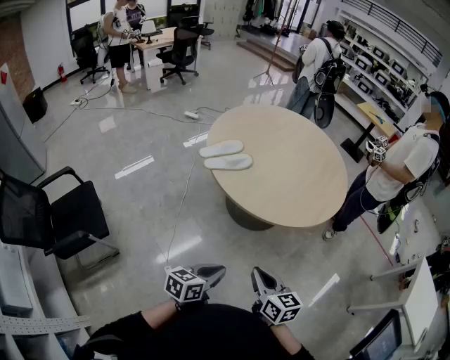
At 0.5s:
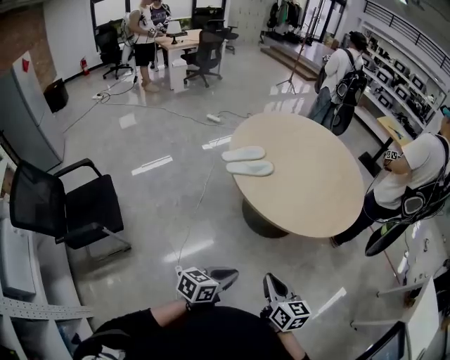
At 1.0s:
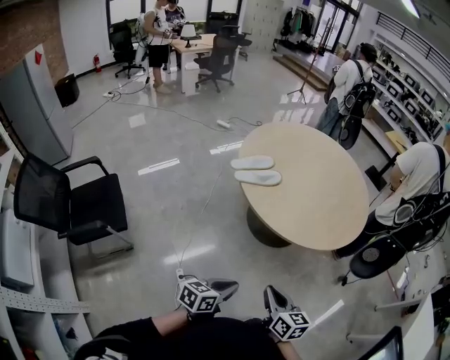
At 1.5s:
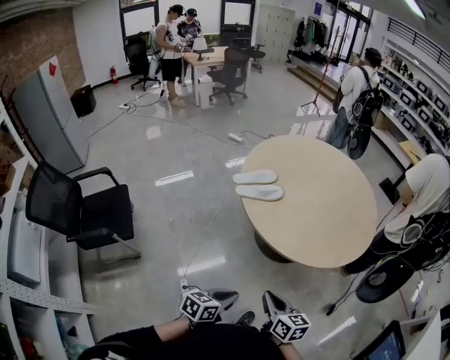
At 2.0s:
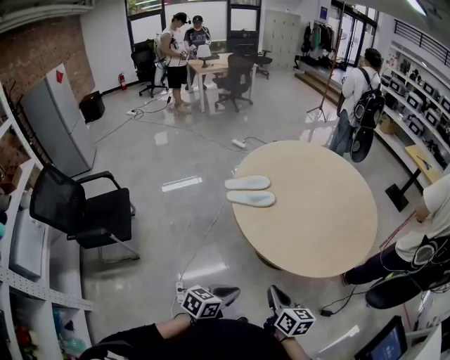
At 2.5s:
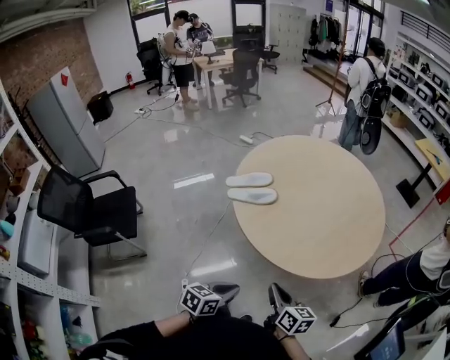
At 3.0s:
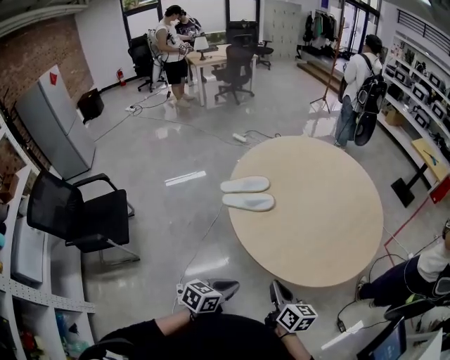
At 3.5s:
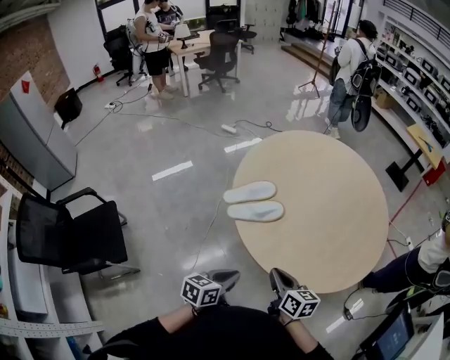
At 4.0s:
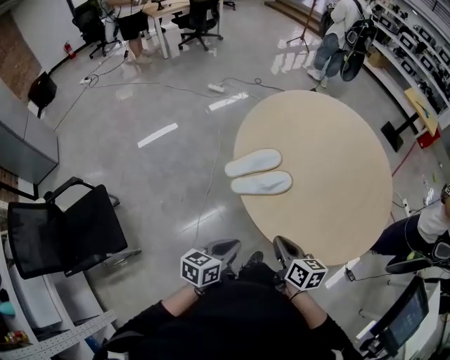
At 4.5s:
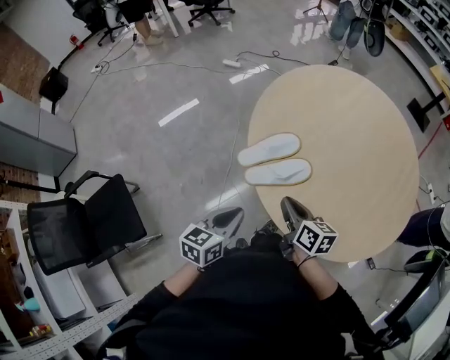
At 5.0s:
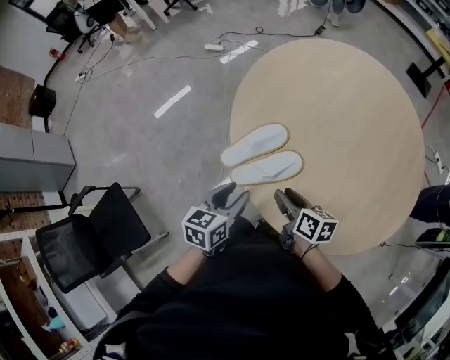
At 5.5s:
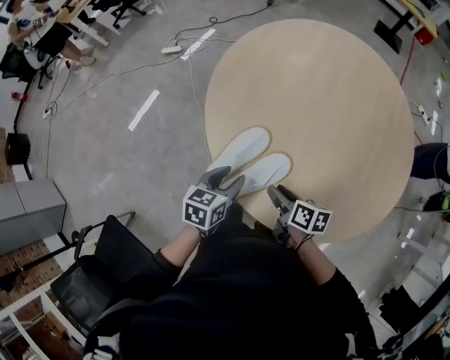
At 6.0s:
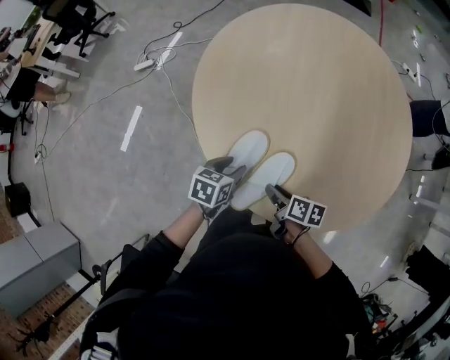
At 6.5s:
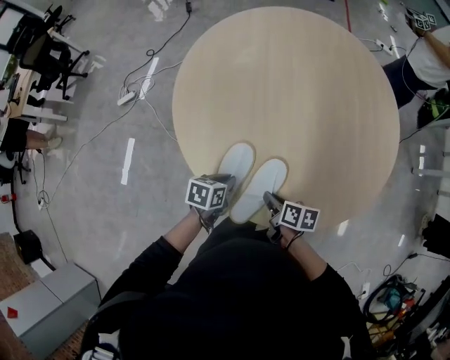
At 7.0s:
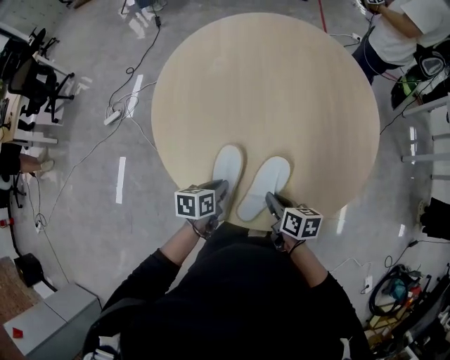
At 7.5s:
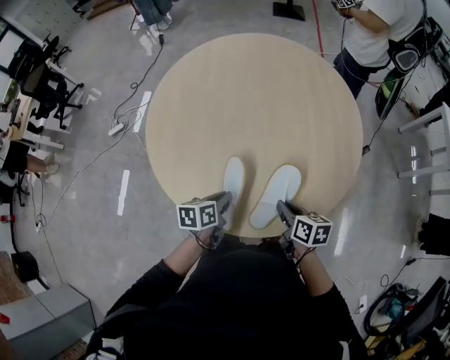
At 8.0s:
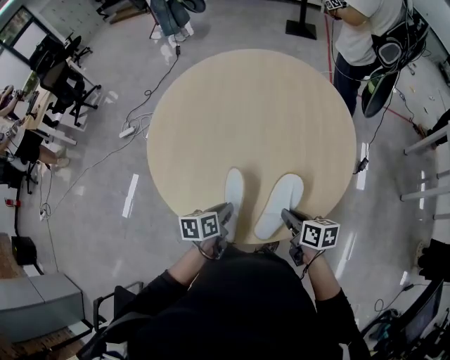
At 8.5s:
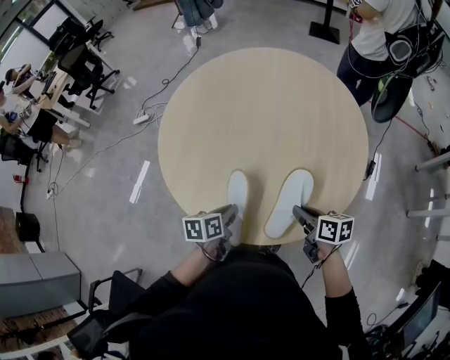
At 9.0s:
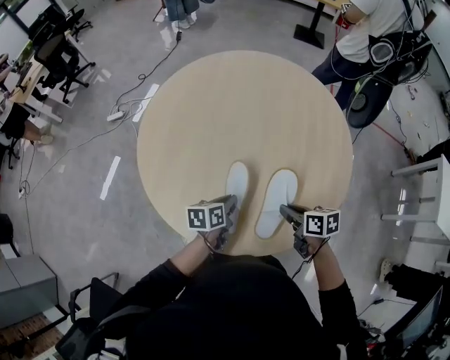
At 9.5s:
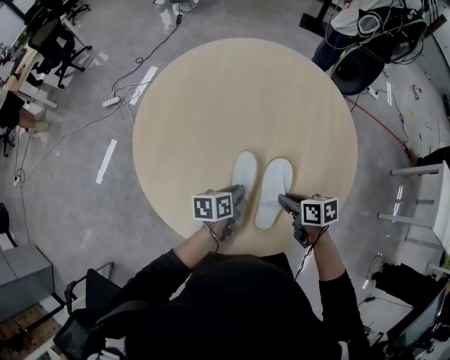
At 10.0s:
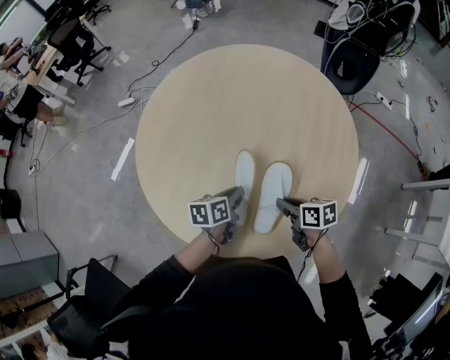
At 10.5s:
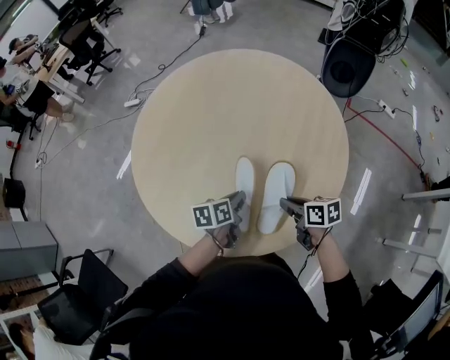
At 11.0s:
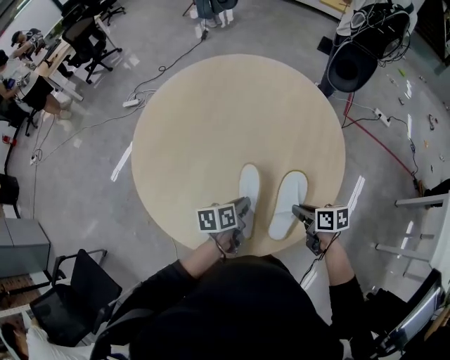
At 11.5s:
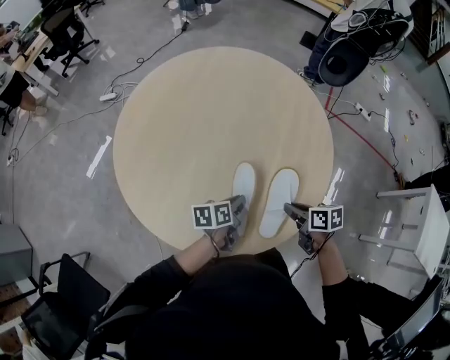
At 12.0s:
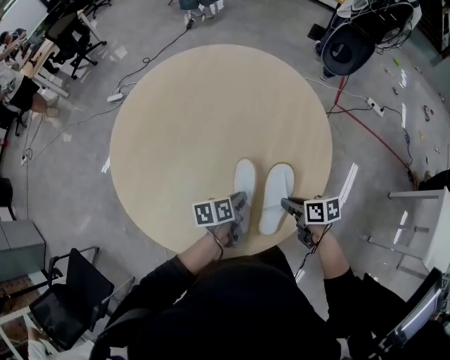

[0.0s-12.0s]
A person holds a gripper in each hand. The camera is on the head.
0.0s to 2.0s: The right gripper heads forward and to the right, covering roughly 15 cm; the left gripper moves to the right and forward, some 15 cm.
2.0s to 4.0s: The two grippers go roughly 35 cm forward and to the left.
4.0s to 6.0s: The right gripper moves approximately 30 cm, rotates around the line of its fingers by approximately 40 degrees, clockwise from behind, and opens; the left gripper ends up roughly 40 cm from where it was, rotates about 50 degrees, and opens up.
6.0s to 8.0s: The two grippers go roughly 30 cm to the right. The right gripper closes its fingers. The left gripper closes.
8.0s to 10.0s: The left gripper moves forward and to the right, about 15 cm; the right gripper heads forward, covering roughly 15 cm, and turns by roughly 20 degrees.
10.0s to 12.0s: The two grippers go roughly 15 cm to the right.

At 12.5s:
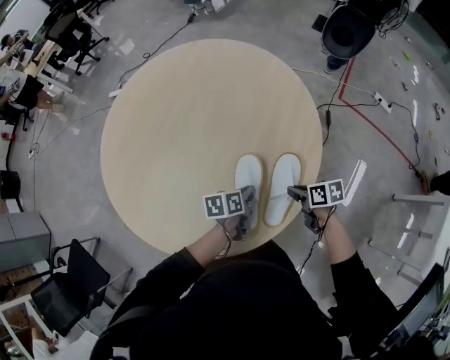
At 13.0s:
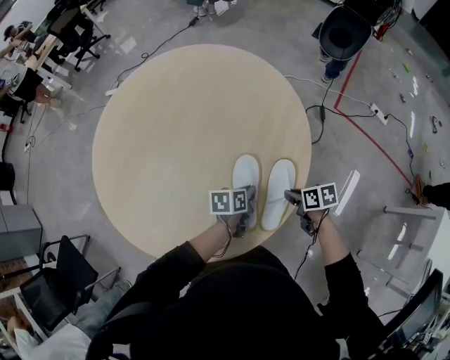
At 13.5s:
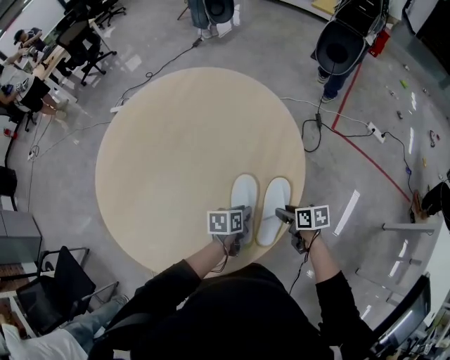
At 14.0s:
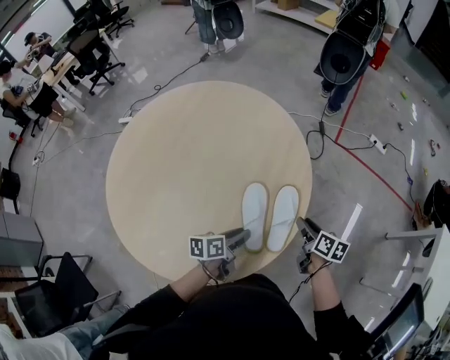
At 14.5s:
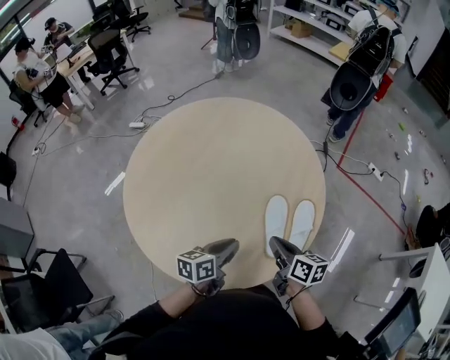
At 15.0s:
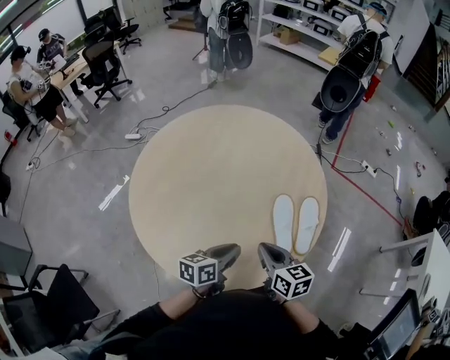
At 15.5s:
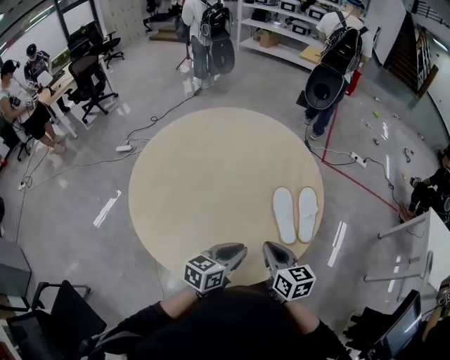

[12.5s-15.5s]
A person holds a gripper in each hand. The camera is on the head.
12.5s to 14.0s: The right gripper goes approximately 10 cm to the right and upward, changes its angle by approximately 30 degrees, and opens. The left gripper heads upward, covering about 5 cm, and opens.
14.0s to 15.5s: Both grippers travel together to the left, backward and upward, roughly 35 cm. The left gripper turns by about 40 degrees, and closes its fingers, while the right gripper changes its angle by some 30 degrees, and closes its fingers.

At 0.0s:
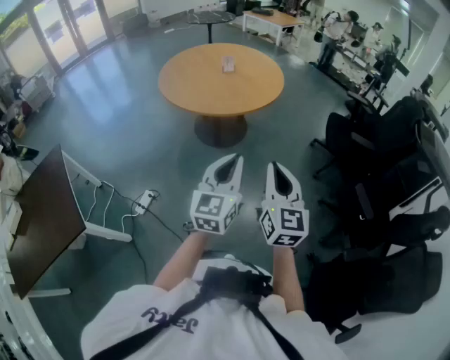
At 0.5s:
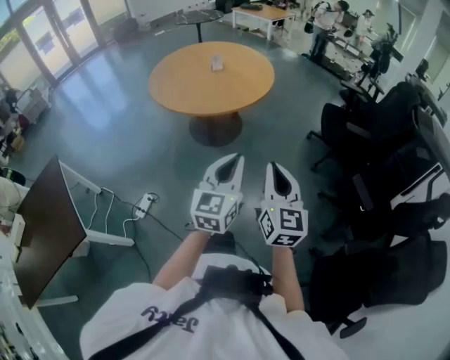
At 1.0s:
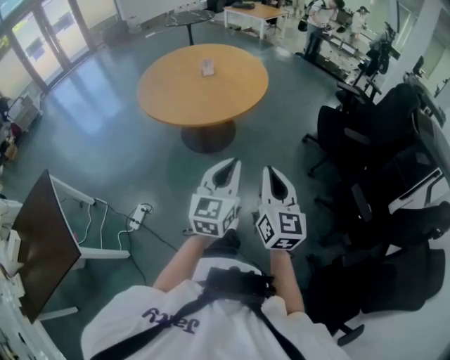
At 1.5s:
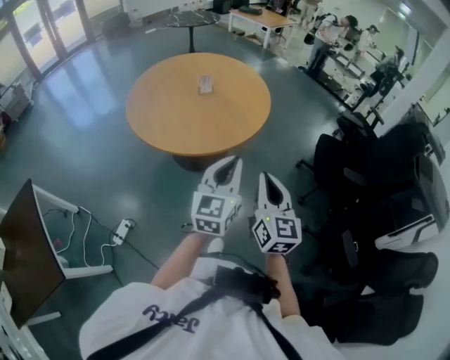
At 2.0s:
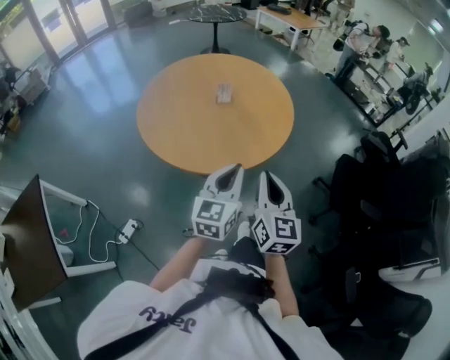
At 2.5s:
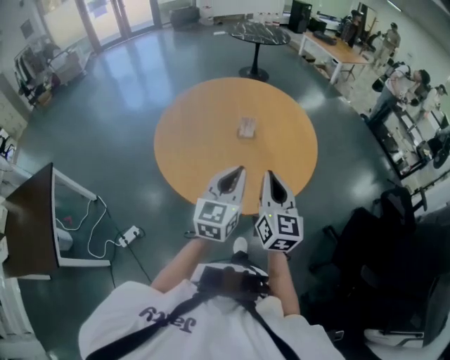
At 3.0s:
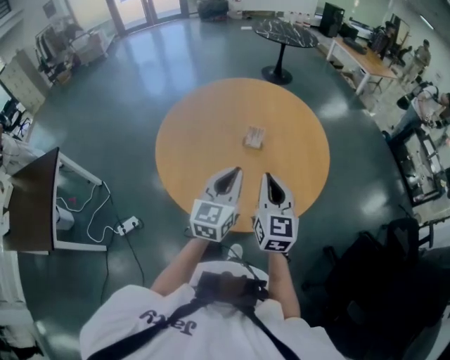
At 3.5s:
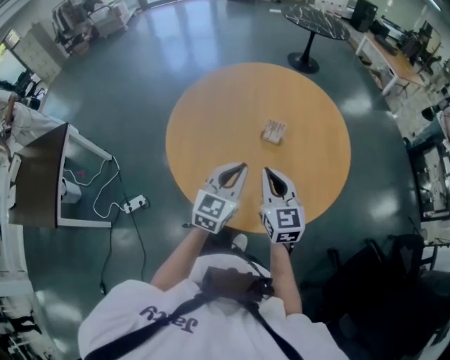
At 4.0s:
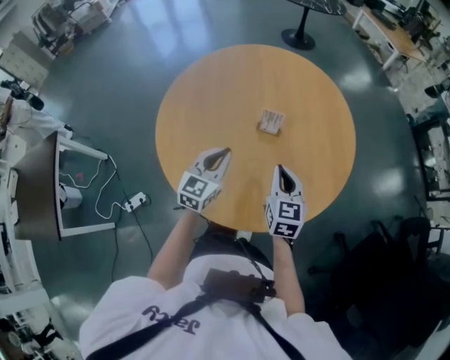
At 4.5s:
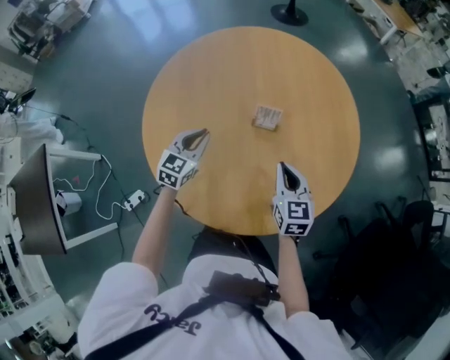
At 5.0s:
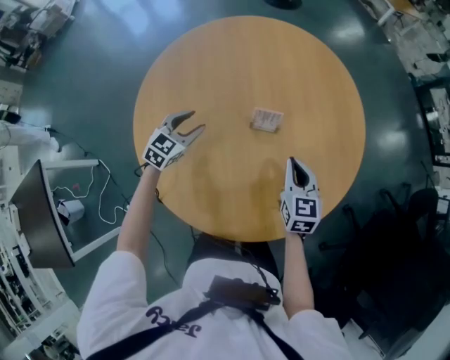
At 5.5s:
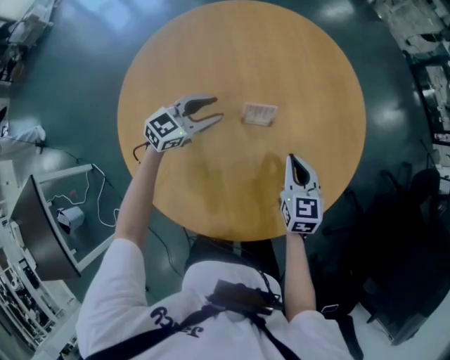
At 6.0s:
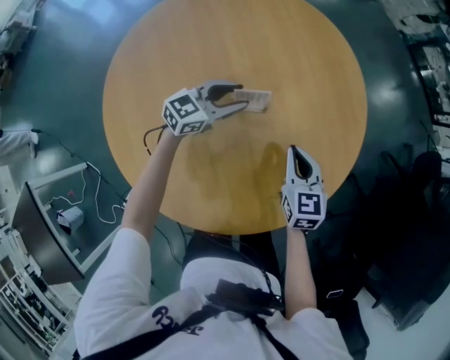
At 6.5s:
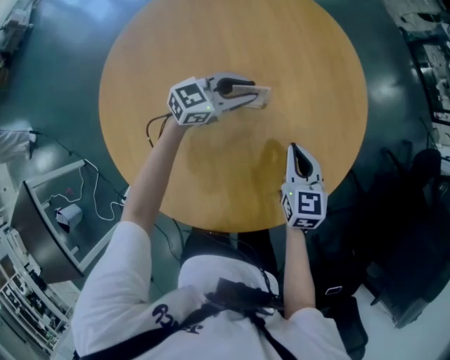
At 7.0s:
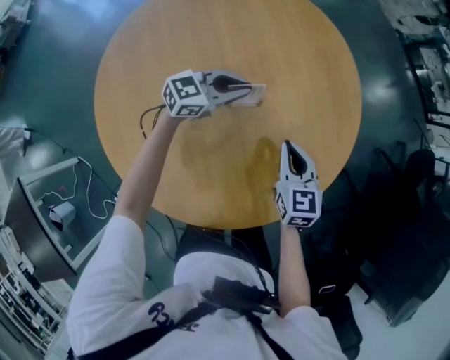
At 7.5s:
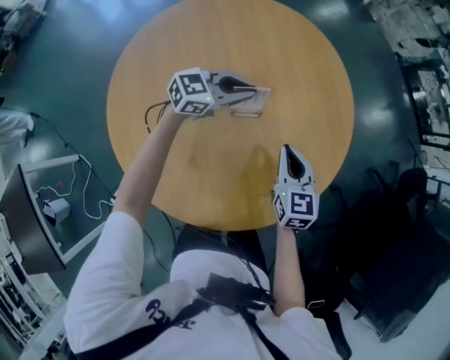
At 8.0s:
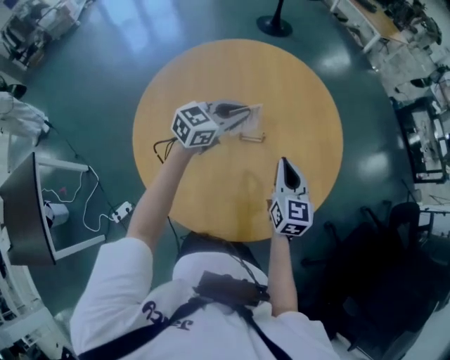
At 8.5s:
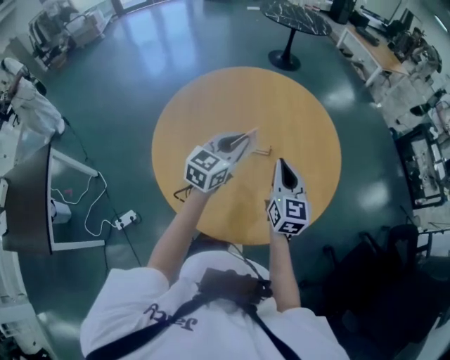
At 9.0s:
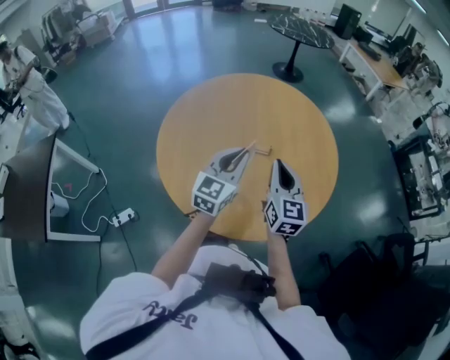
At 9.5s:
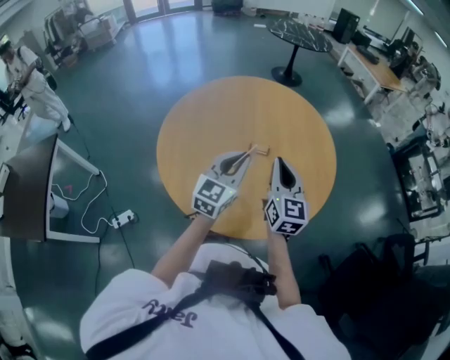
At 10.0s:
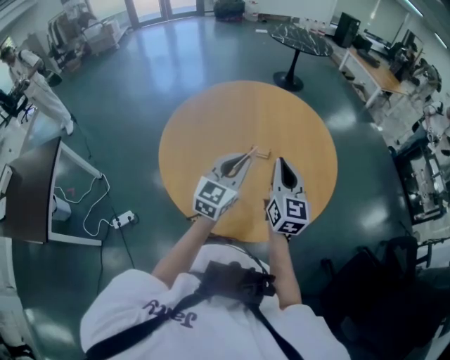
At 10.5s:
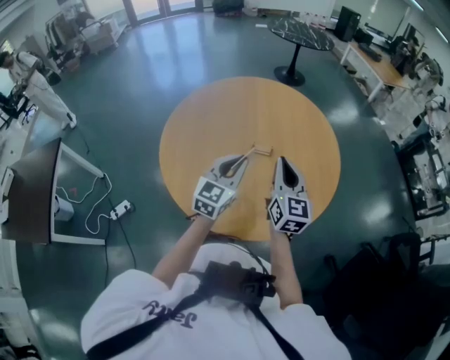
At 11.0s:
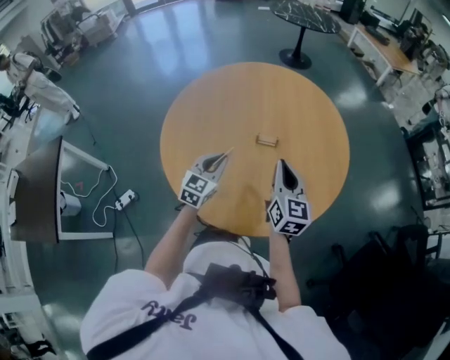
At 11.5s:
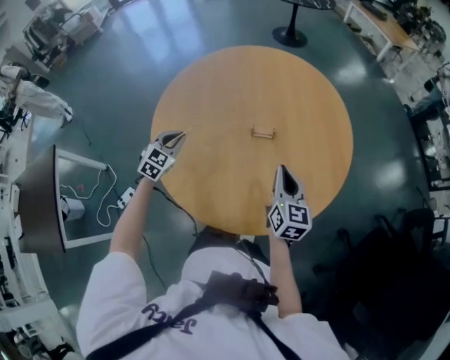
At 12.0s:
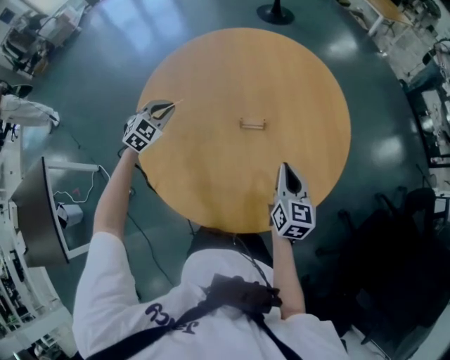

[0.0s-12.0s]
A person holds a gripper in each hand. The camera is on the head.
0.0s to 2.0s: Both grippers move forward, some 35 cm.
2.0s to 4.0s: The right gripper ends up some 35 cm from where it was, and turns by approximately 30 degrees. Meanwhile the left gripper moves approximately 35 cm.
4.0s to 6.0s: The right gripper shifts some 10 cm downward; the left gripper moves some 20 cm, rotates roughly 50 degrees, and opens.
6.0s to 8.0s: The grippers both shift upward by approximately 15 cm. The left gripper closes.
8.0s to 10.0s: The left gripper travels backward by some 20 cm, and swivels approximately 40 degrees; the right gripper moves upward and backward, some 10 cm.
10.0s to 12.0s: The left gripper goes about 35 cm to the left, forward and downward, and angles its fingers downward, by roughly 40 degrees. The right gripper shifts approximately 15 cm downward, and rotates roughly 30 degrees.
